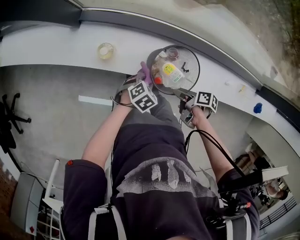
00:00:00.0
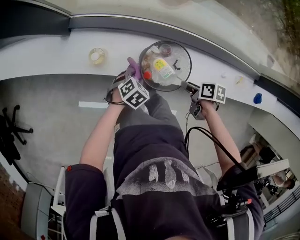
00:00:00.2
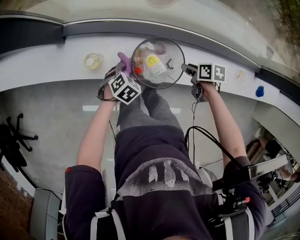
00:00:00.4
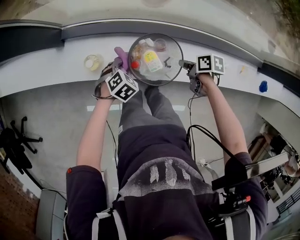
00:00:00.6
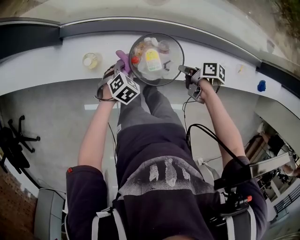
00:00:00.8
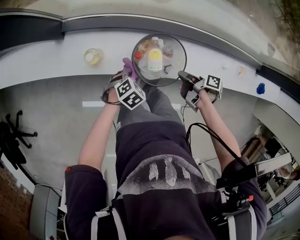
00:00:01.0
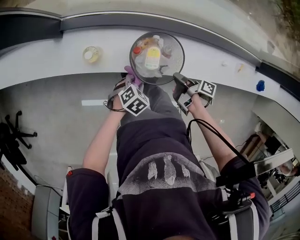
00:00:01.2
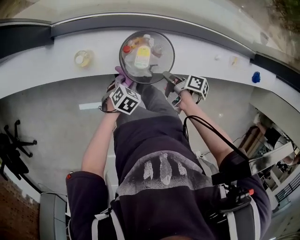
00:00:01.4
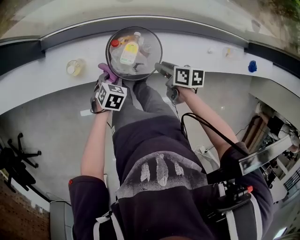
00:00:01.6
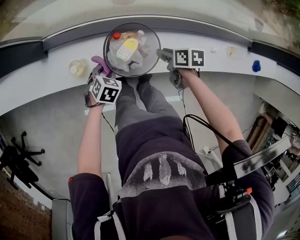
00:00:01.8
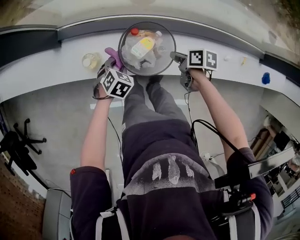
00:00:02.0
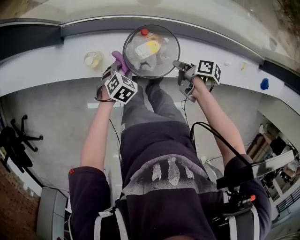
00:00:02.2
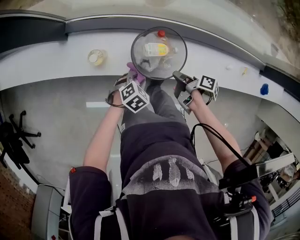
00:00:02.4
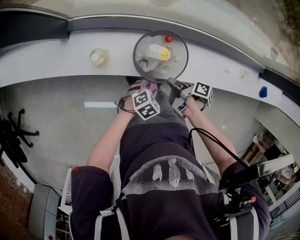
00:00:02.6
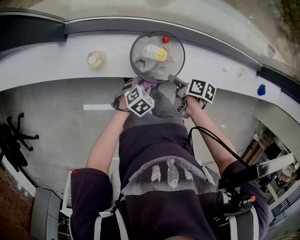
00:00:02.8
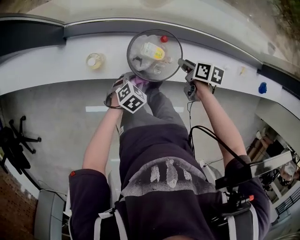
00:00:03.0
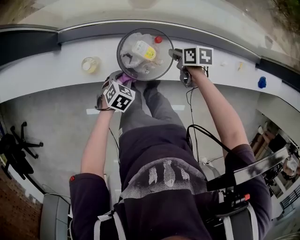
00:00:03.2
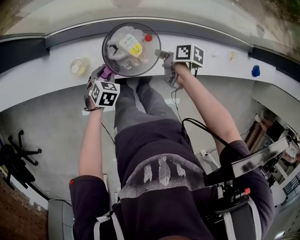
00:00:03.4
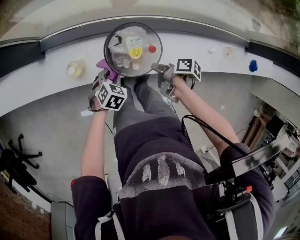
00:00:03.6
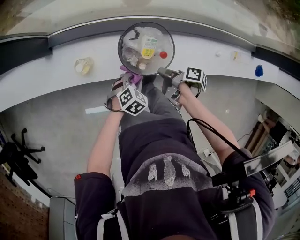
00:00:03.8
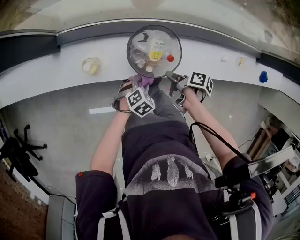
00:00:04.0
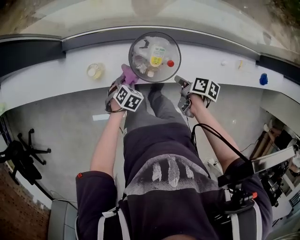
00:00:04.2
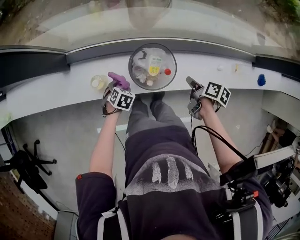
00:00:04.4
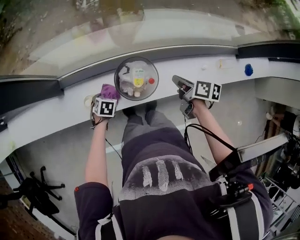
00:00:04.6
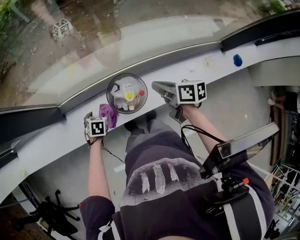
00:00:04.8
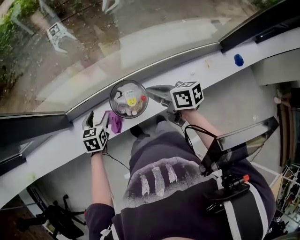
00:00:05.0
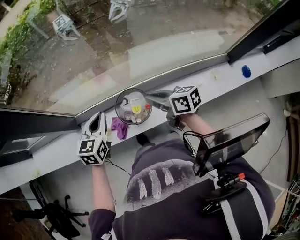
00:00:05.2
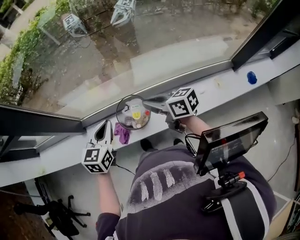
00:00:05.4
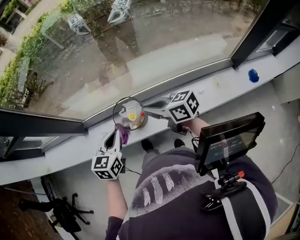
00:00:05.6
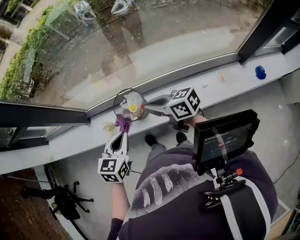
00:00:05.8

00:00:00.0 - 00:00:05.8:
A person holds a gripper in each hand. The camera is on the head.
00:00:00.0 - 00:00:01.4: The right gripper changes its angle by some 20 degrees.
00:00:01.4 - 00:00:02.8: The right gripper swivels approximately 20 degrees.
00:00:02.8 - 00:00:04.4: The left gripper moves approximately 15 cm; the right gripper moves about 15 cm.
00:00:04.4 - 00:00:05.8: The left gripper heads upward, covering roughly 35 cm, tilts its fingers approximately 40 degrees upward, and closes up, while the right gripper is displaced upward by some 25 cm, and tilts its fingers about 40 degrees upward.

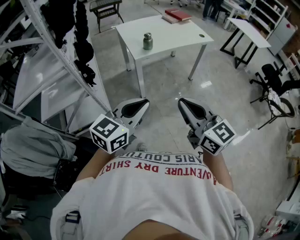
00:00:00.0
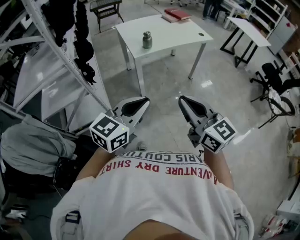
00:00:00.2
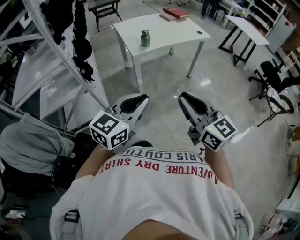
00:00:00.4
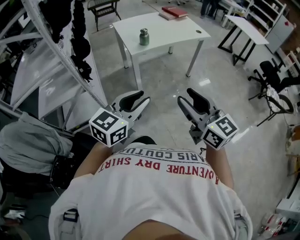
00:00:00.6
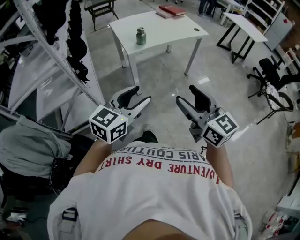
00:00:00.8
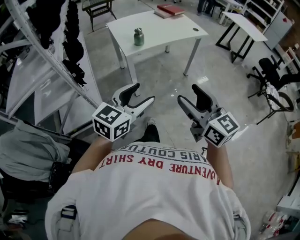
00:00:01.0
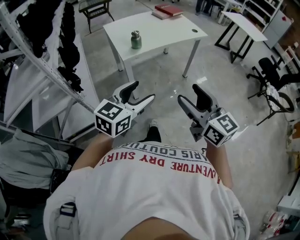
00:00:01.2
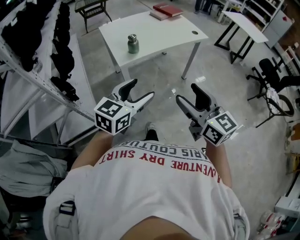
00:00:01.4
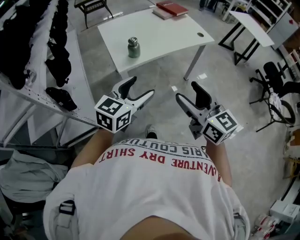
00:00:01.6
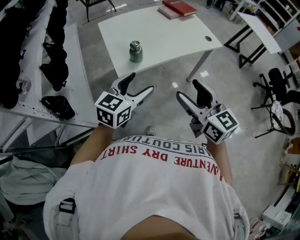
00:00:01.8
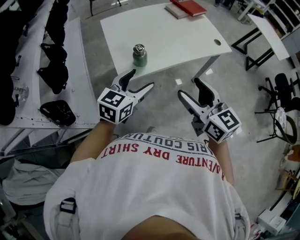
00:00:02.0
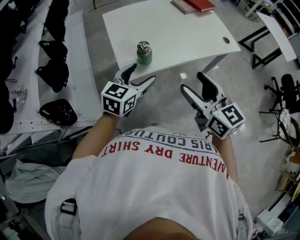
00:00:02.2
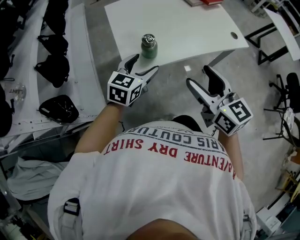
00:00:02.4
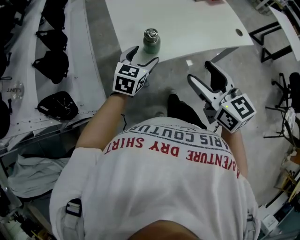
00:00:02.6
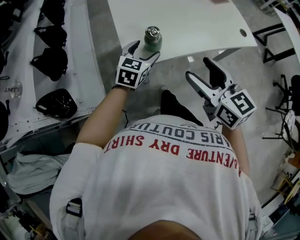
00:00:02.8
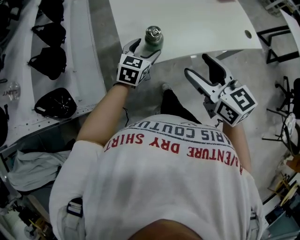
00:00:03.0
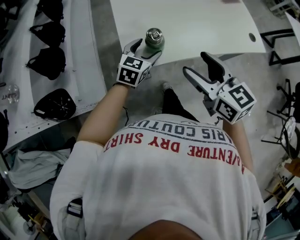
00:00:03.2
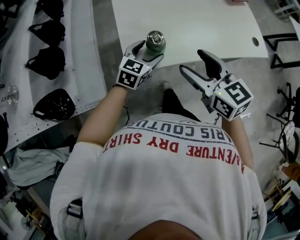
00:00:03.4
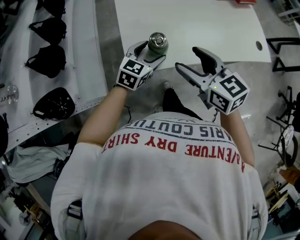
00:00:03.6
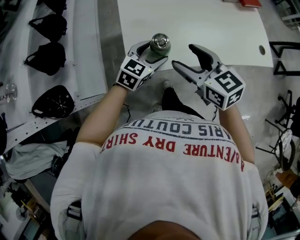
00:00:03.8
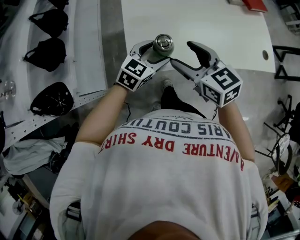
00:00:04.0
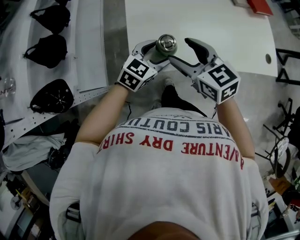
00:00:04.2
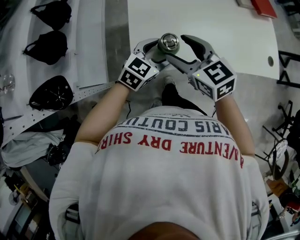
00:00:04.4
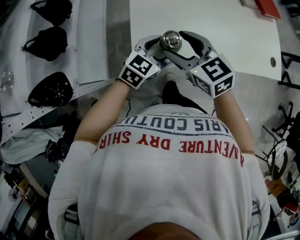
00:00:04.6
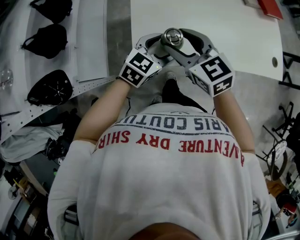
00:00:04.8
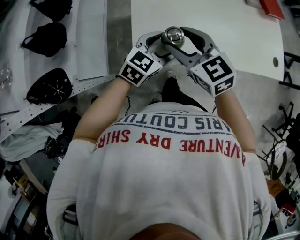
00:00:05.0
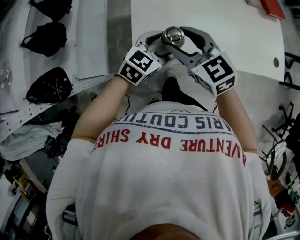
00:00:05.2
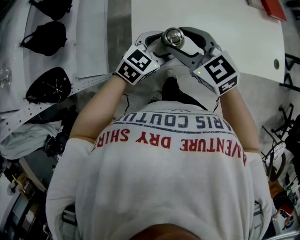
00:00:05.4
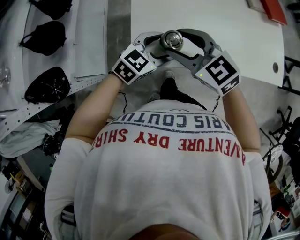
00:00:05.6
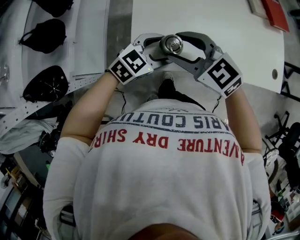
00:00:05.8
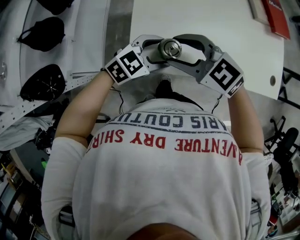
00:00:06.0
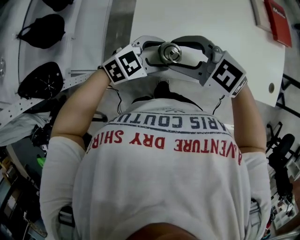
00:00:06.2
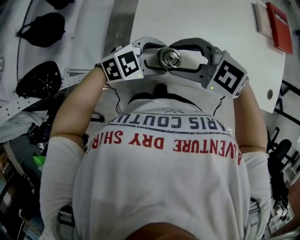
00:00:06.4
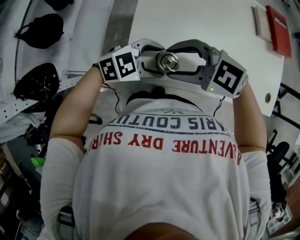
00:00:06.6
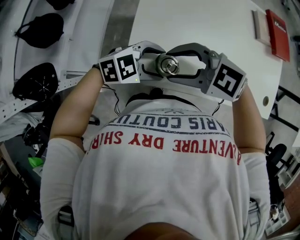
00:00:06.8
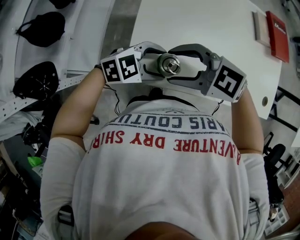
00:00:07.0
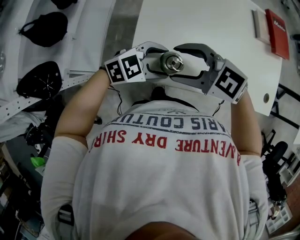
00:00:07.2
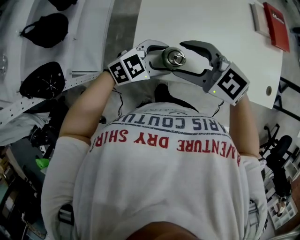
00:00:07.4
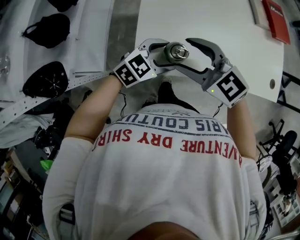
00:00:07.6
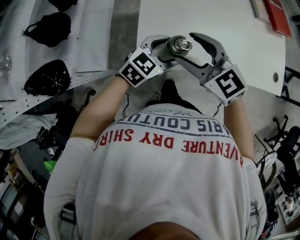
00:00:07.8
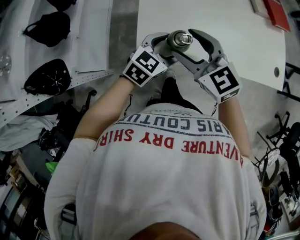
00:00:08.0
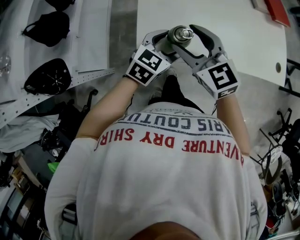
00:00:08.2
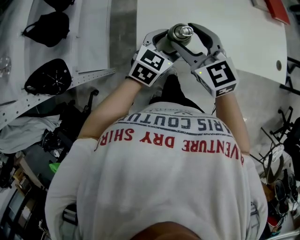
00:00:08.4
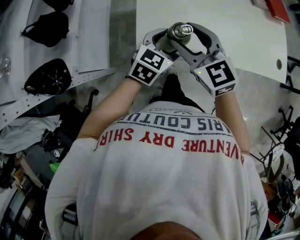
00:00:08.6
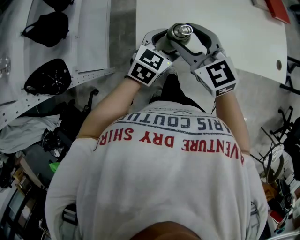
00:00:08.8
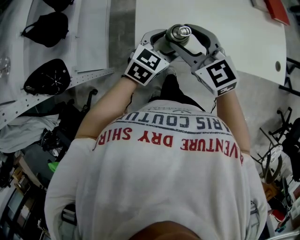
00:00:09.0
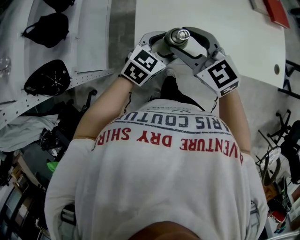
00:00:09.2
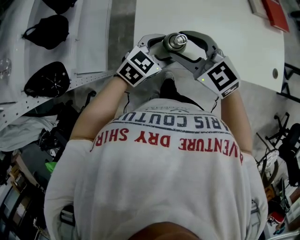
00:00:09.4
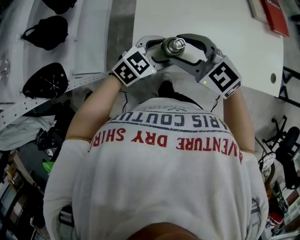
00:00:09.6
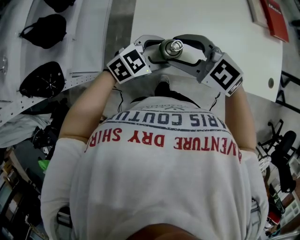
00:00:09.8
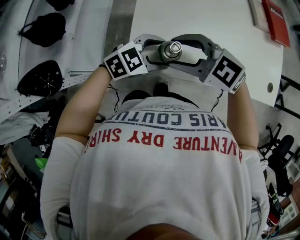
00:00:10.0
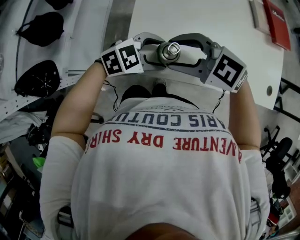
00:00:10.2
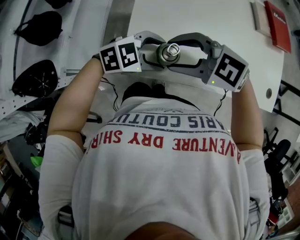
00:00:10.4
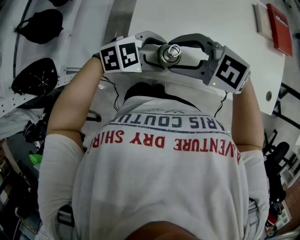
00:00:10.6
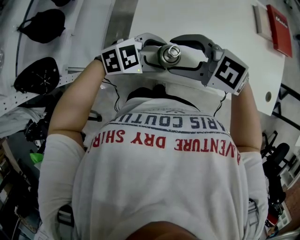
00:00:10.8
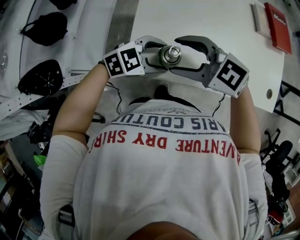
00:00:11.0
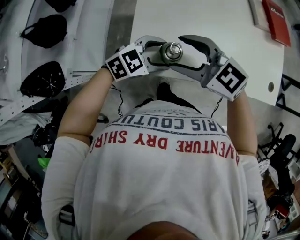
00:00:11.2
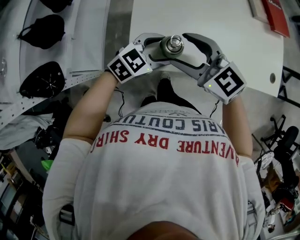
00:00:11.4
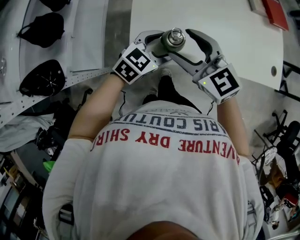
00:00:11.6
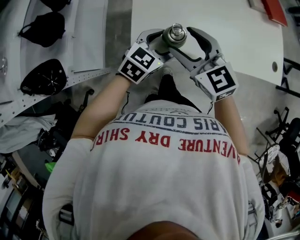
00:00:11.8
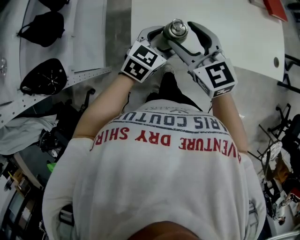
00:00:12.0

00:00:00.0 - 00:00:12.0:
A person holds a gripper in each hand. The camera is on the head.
00:00:00.0 - 00:00:01.6: Both grippers move forward, some 25 cm. The right gripper opens up. The left gripper opens its fingers.
00:00:01.6 - 00:00:03.0: The left gripper goes about 35 cm forward and downward, and rotates roughly 20 degrees, while the right gripper goes about 25 cm forward, and turns by about 20 degrees.
00:00:03.0 - 00:00:04.4: The right gripper goes about 20 cm forward, to the left and downward, and turns by some 20 degrees.
00:00:04.4 - 00:00:06.0: The right gripper swivels about 30 degrees.
00:00:09.0 - 00:00:10.4: The right gripper turns by approximately 50 degrees. The left gripper swivels approximately 40 degrees.
00:00:10.4 - 00:00:12.0: The right gripper swivels about 50 degrees. Meanwhile the left gripper turns by roughly 40 degrees.

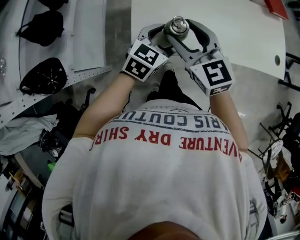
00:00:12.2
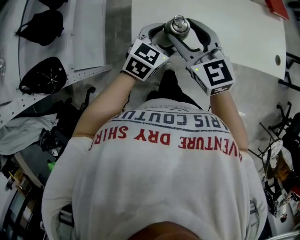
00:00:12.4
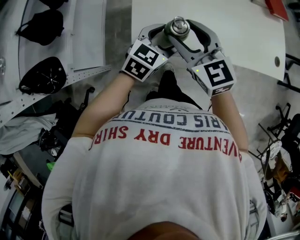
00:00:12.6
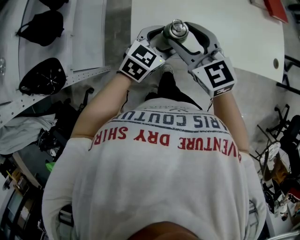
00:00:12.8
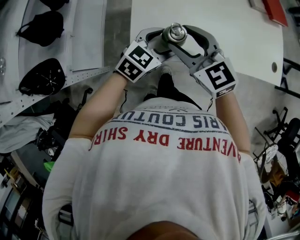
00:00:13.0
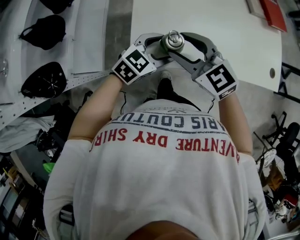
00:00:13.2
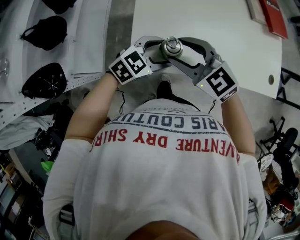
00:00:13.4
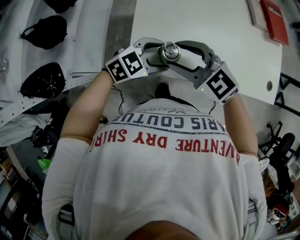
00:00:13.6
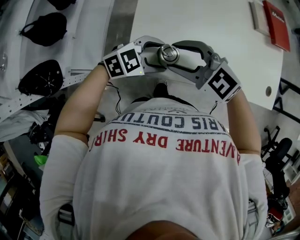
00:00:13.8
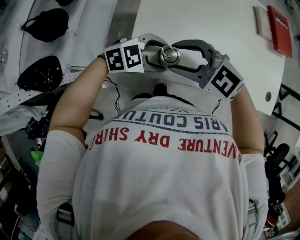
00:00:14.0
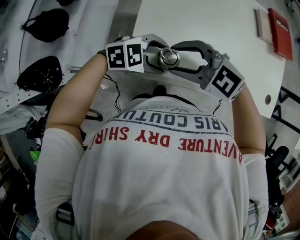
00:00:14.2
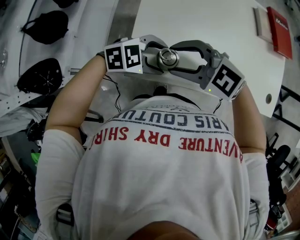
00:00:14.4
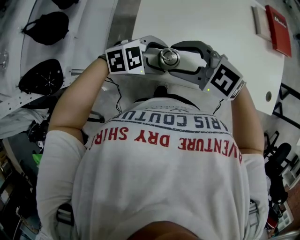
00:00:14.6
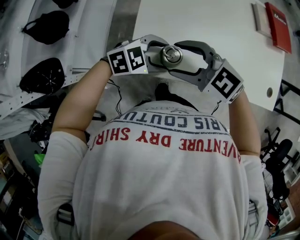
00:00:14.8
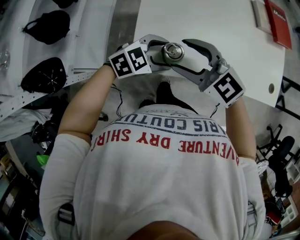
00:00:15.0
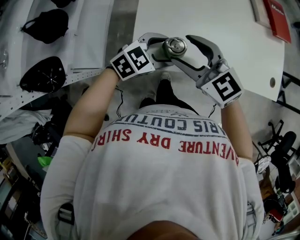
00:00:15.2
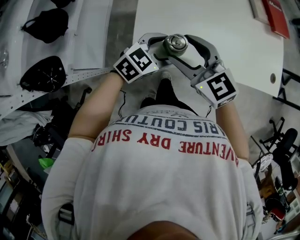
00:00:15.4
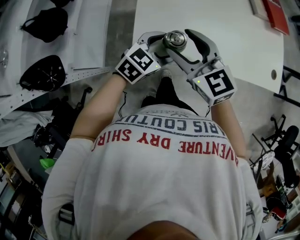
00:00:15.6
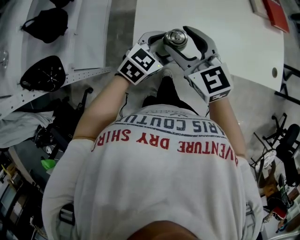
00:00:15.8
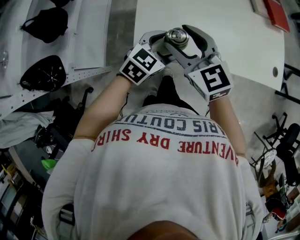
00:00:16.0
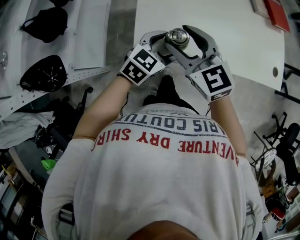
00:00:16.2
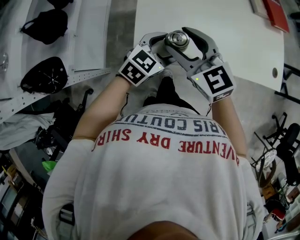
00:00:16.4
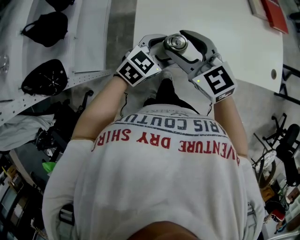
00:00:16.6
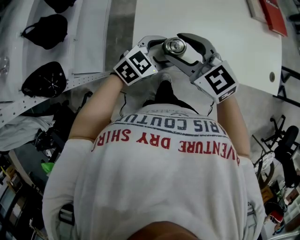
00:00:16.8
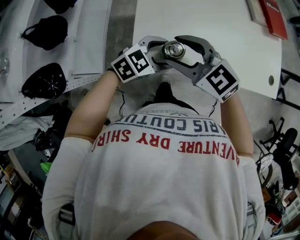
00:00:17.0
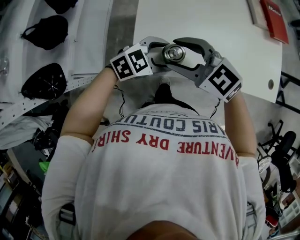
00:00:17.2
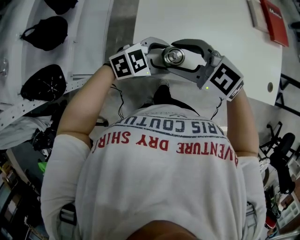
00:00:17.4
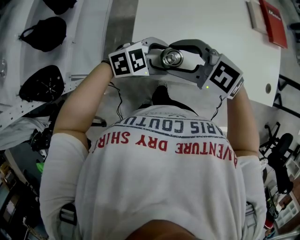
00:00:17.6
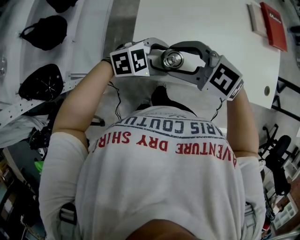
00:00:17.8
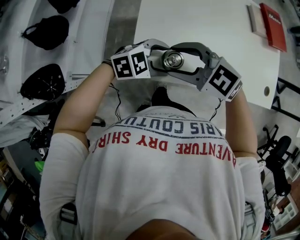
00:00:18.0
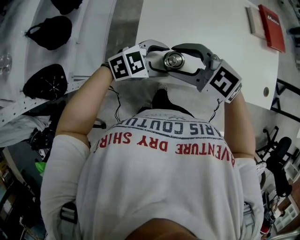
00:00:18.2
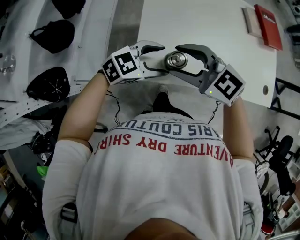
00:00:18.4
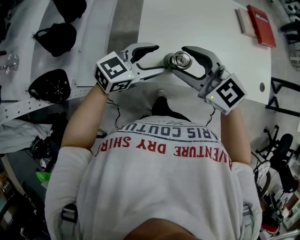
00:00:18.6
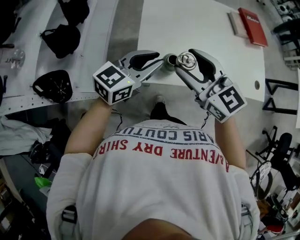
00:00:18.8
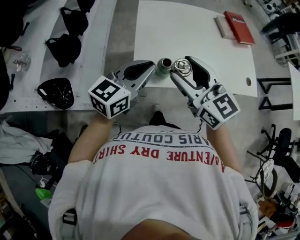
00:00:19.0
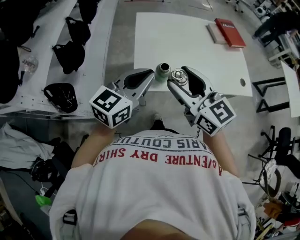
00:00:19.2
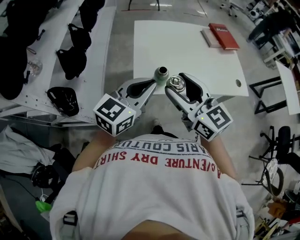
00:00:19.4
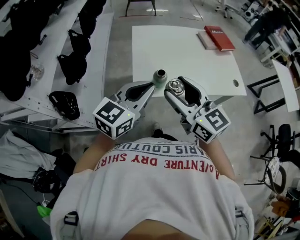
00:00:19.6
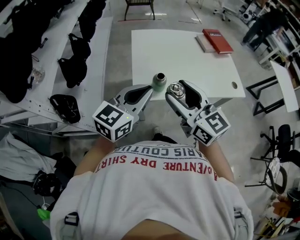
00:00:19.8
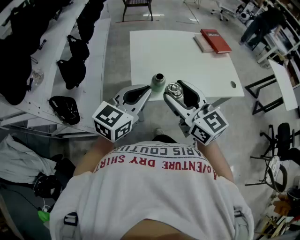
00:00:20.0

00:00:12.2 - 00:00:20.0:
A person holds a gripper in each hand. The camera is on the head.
00:00:12.2 - 00:00:13.8: The left gripper swivels roughly 30 degrees. The right gripper swivels some 40 degrees.
00:00:13.8 - 00:00:15.4: The right gripper changes its angle by approximately 30 degrees.
00:00:15.4 - 00:00:16.8: The grippers make only small movements.
00:00:16.8 - 00:00:18.4: The left gripper ends up about 5 cm from where it was.
00:00:18.4 - 00:00:20.0: Both grippers move upward, some 15 cm. The left gripper rotates roughly 30 degrees, and closes. The right gripper changes its angle by approximately 50 degrees.
